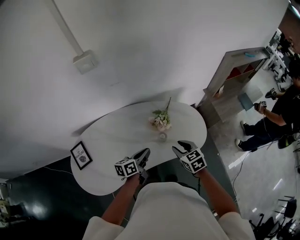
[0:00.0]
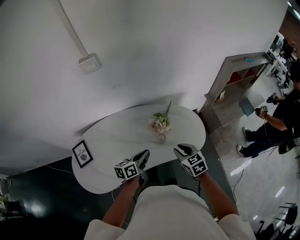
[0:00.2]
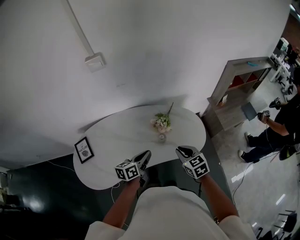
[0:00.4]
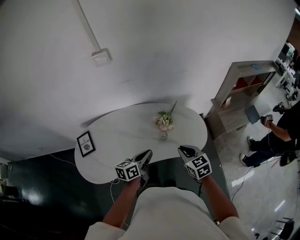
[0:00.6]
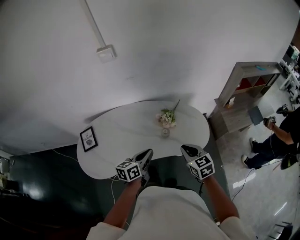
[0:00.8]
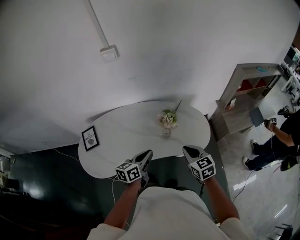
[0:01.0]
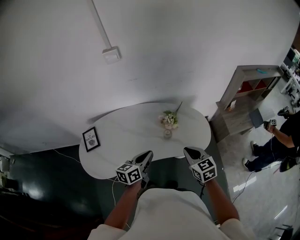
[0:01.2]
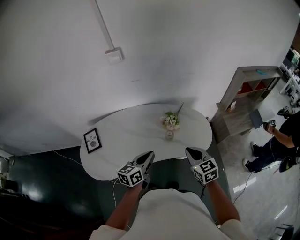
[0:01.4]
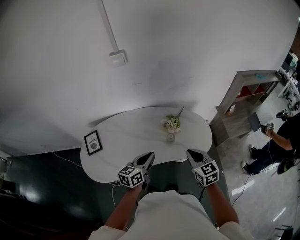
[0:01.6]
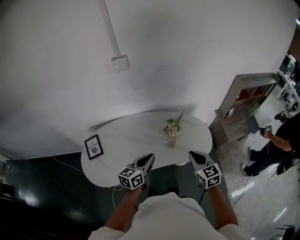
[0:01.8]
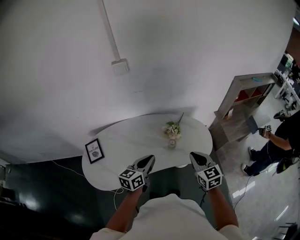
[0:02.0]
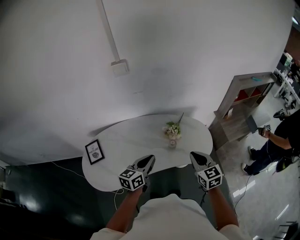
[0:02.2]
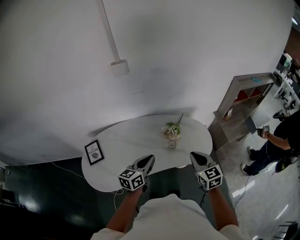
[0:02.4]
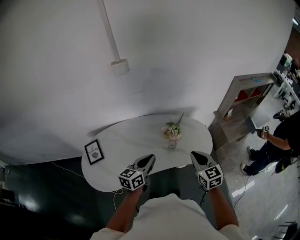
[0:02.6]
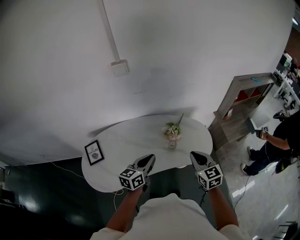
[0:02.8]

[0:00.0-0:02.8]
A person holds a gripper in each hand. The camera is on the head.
0:00.0 to 0:01.4: The right gripper moves upward, approximately 10 cm, and closes.
0:01.4 to 0:02.8: The right gripper heads upward, covering about 5 cm.

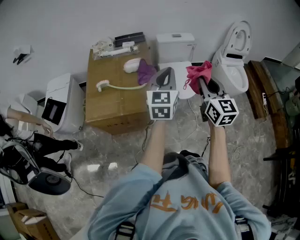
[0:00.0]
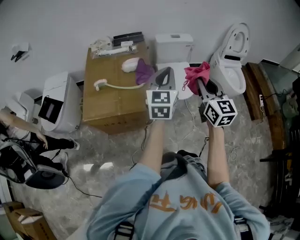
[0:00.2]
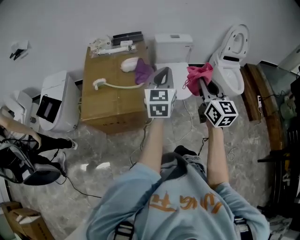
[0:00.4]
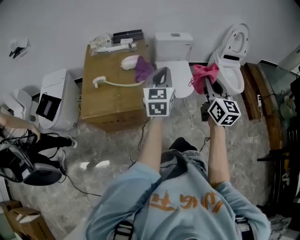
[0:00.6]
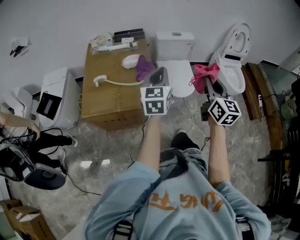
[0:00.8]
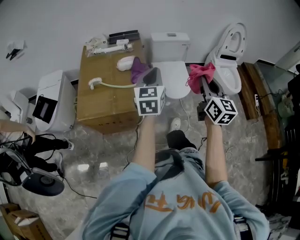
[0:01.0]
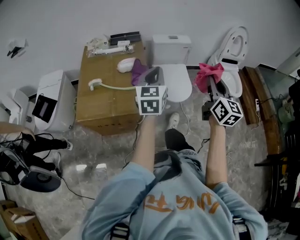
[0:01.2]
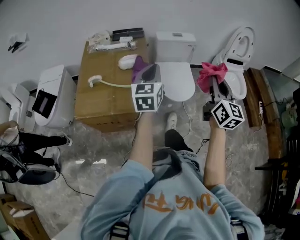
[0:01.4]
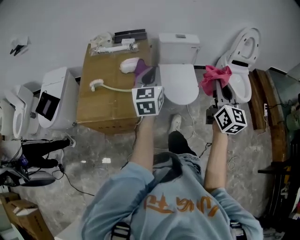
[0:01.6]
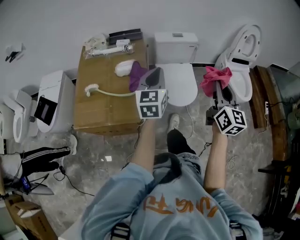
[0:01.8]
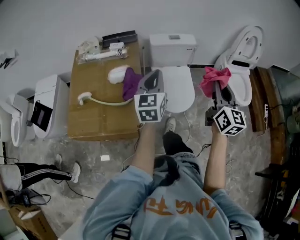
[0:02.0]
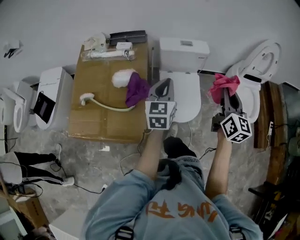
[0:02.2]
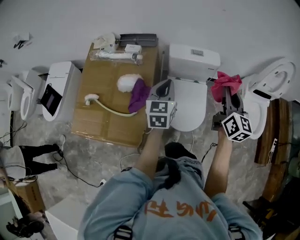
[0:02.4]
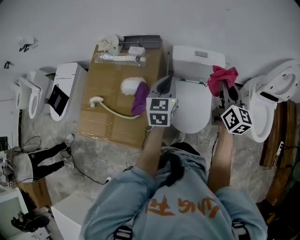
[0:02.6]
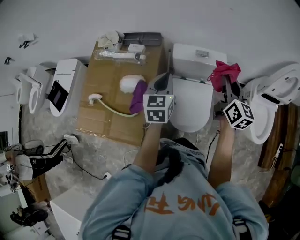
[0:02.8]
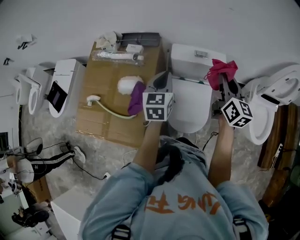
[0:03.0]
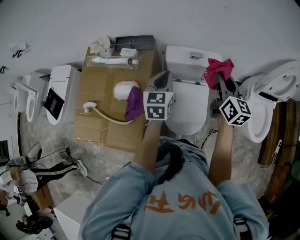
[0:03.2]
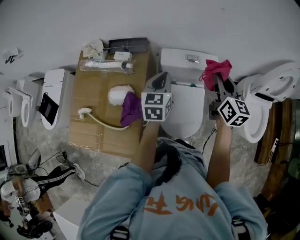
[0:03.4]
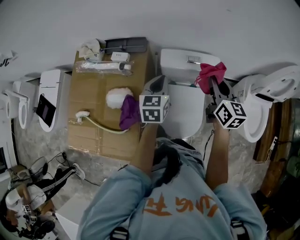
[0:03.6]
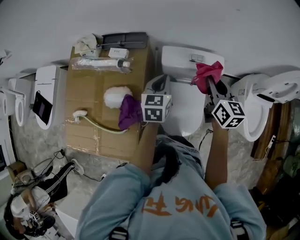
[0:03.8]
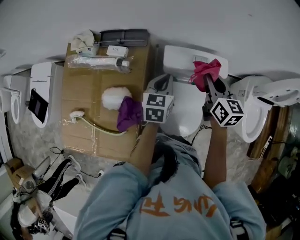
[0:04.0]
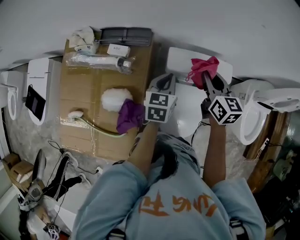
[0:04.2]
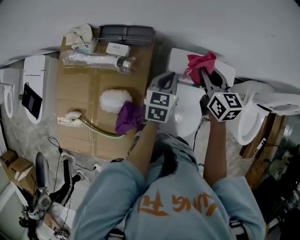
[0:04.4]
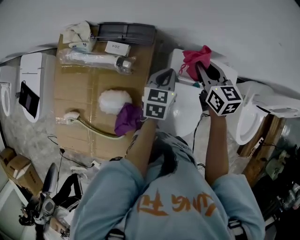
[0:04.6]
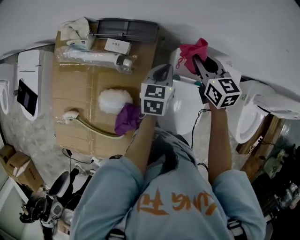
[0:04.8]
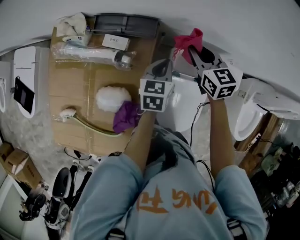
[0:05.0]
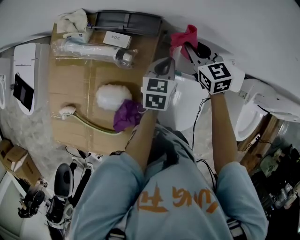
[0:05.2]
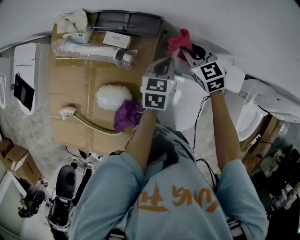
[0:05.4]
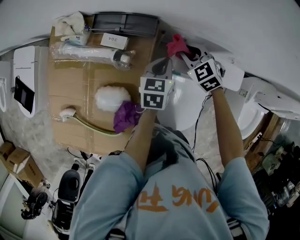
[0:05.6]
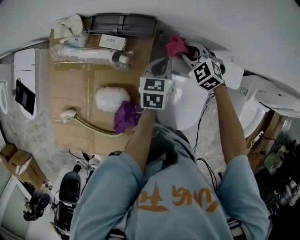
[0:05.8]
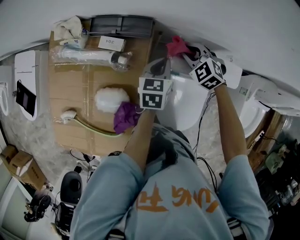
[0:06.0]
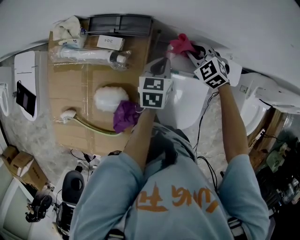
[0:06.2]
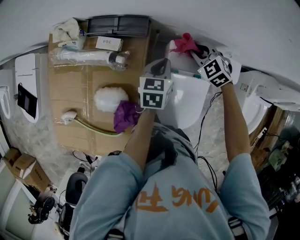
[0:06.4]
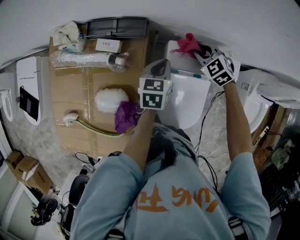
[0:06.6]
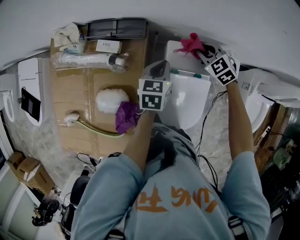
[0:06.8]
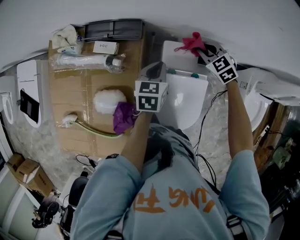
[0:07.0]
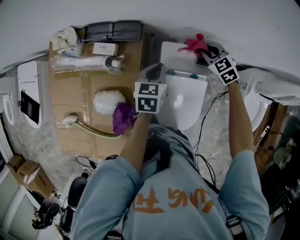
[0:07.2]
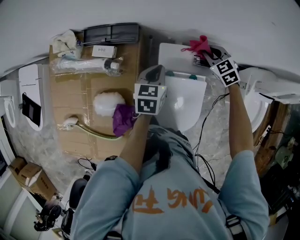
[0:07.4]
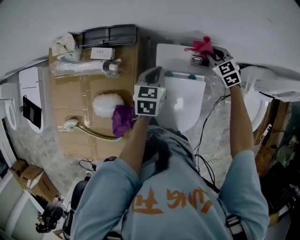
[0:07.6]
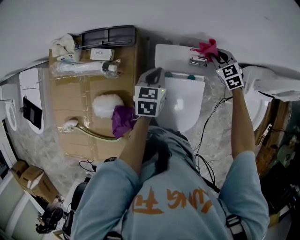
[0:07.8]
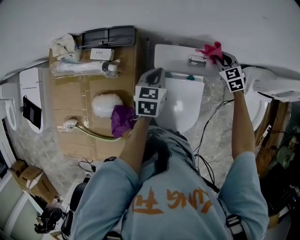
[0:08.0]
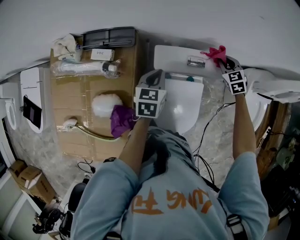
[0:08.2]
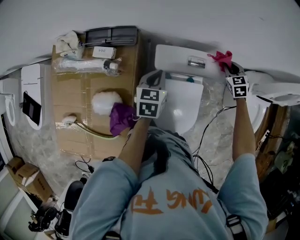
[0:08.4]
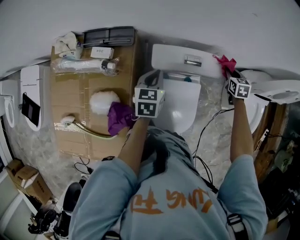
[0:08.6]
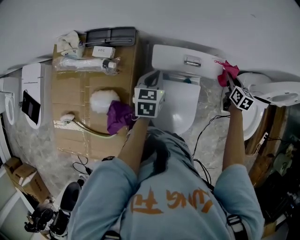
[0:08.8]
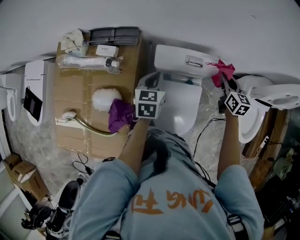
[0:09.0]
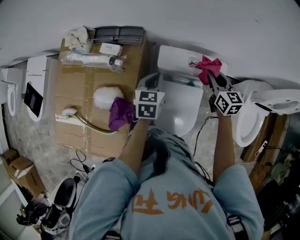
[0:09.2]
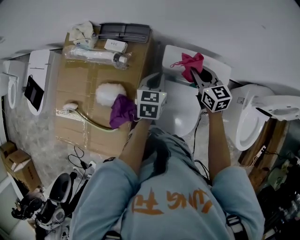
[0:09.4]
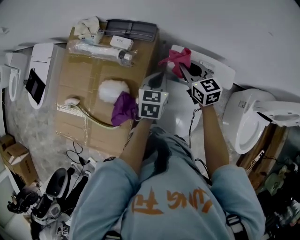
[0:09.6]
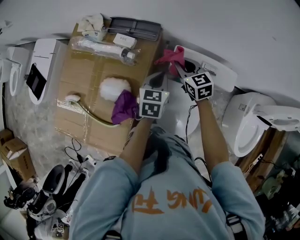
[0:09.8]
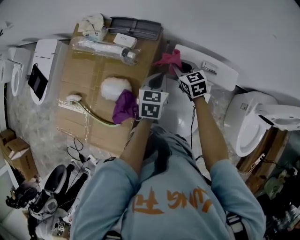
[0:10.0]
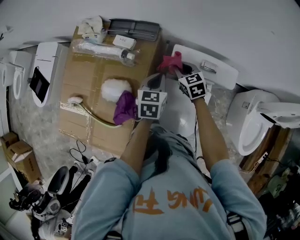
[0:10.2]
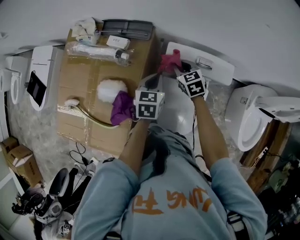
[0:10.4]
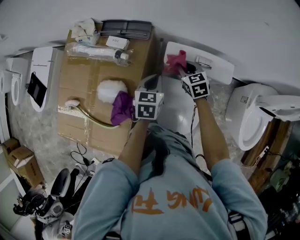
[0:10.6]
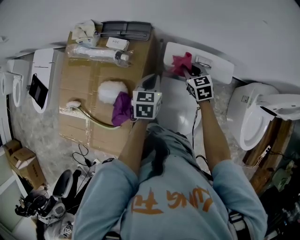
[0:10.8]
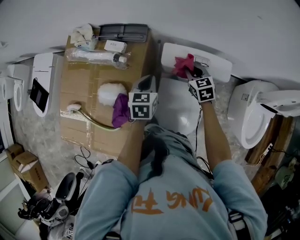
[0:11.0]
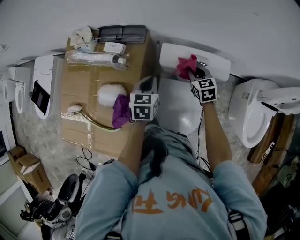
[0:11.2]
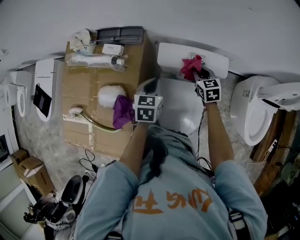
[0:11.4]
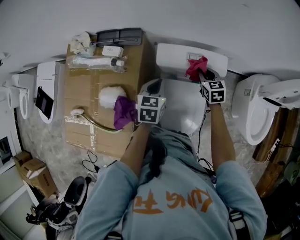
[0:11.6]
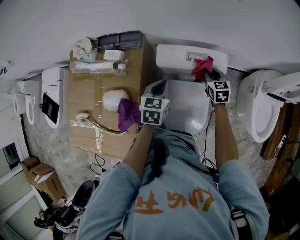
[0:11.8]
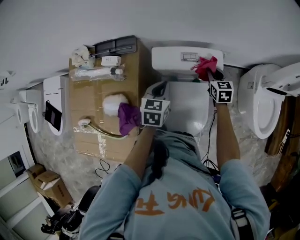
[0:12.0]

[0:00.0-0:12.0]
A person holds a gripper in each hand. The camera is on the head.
0:00.0 to 0:01.6: The left gripper travels forward and downward by roughly 10 cm. The right gripper travels to the right and forward by roughly 10 cm.
0:01.6 to 0:03.0: The grippers both shift forward by roughly 40 cm. The right gripper rotates roughly 20 degrees.
0:03.0 to 0:04.4: The left gripper goes some 25 cm forward and downward. The right gripper shifts approximately 30 cm forward, to the left and downward, and rotates approximately 30 degrees.
0:04.4 to 0:06.0: The right gripper is displaced downward, forward and to the left by about 20 cm, and rotates around the line of its fingers by approximately 50 degrees, counterclockwise from behind; the left gripper travels downward and forward by about 10 cm.
0:06.0 to 0:07.6: The left gripper changes place by about 5 cm, while the right gripper is displaced to the right by approximately 20 cm, and turns by about 20 degrees.
0:07.6 to 0:09.0: The right gripper travels to the right, backward and upward by about 15 cm, and rolls clockwise, seen from behind, by some 40 degrees.
0:09.0 to 0:10.4: The right gripper heads to the left, covering approximately 25 cm, and swivels approximately 40 degrees.
0:10.4 to 0:12.0: The left gripper shifts about 10 cm to the right; the right gripper heads to the right, covering some 25 cm, and turns by some 30 degrees.

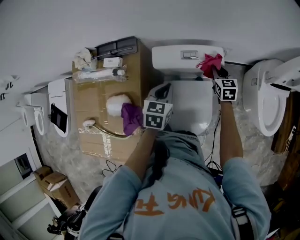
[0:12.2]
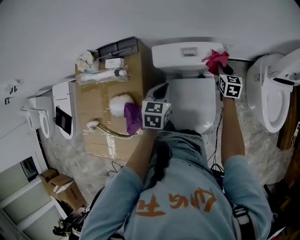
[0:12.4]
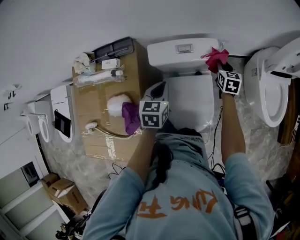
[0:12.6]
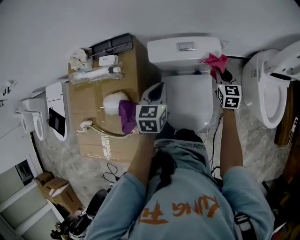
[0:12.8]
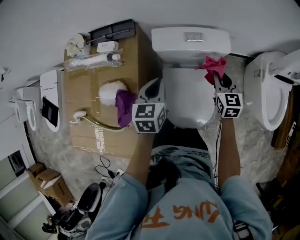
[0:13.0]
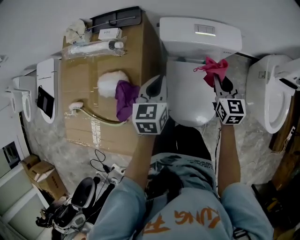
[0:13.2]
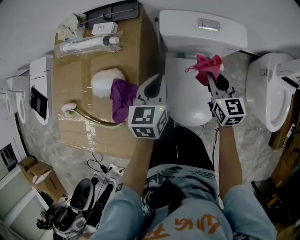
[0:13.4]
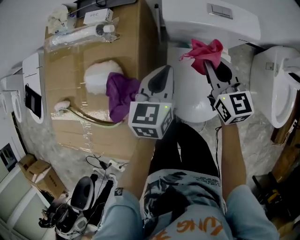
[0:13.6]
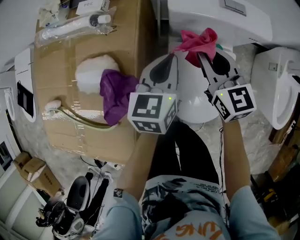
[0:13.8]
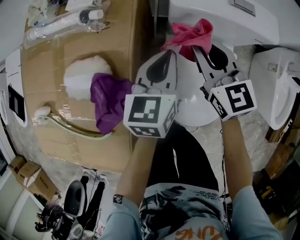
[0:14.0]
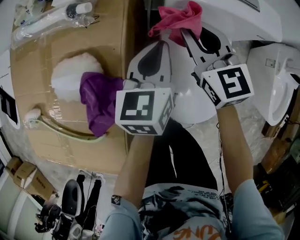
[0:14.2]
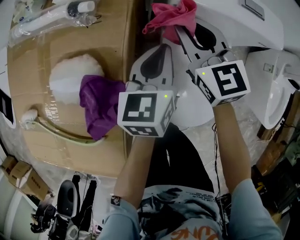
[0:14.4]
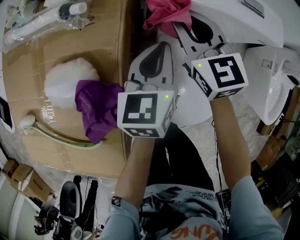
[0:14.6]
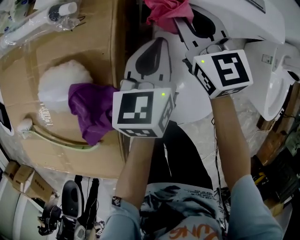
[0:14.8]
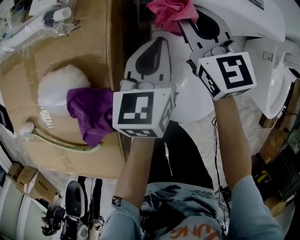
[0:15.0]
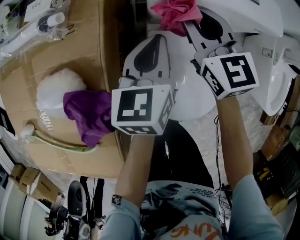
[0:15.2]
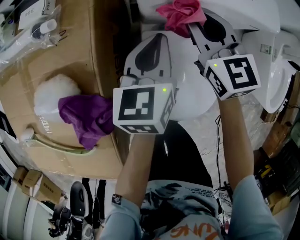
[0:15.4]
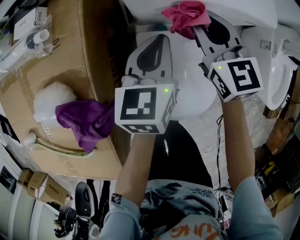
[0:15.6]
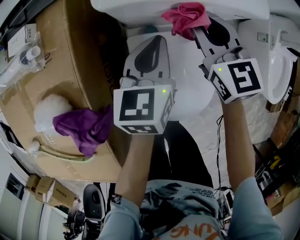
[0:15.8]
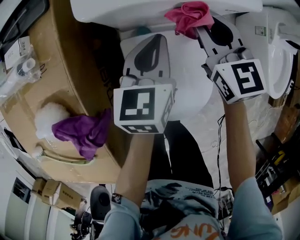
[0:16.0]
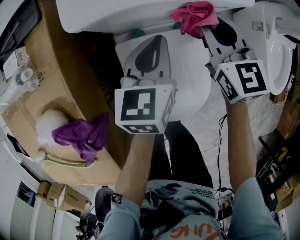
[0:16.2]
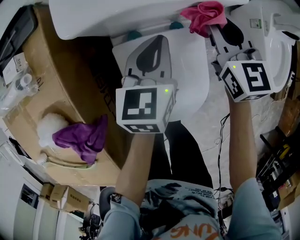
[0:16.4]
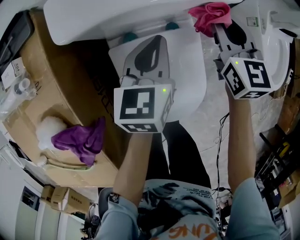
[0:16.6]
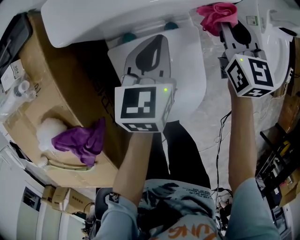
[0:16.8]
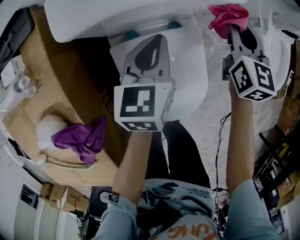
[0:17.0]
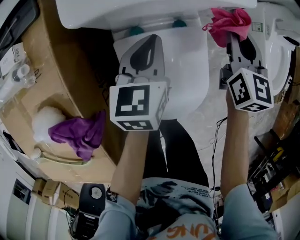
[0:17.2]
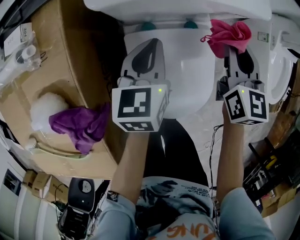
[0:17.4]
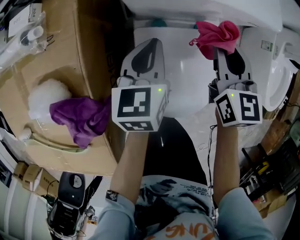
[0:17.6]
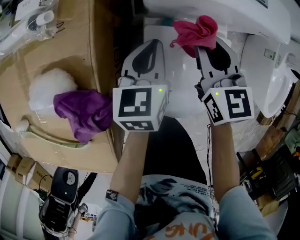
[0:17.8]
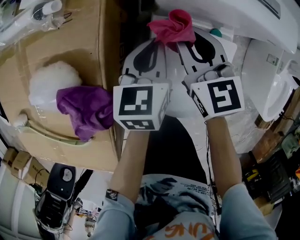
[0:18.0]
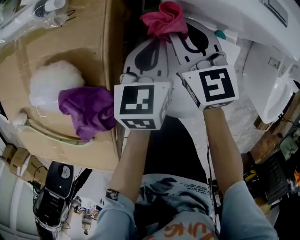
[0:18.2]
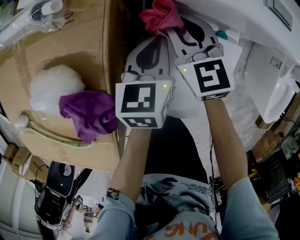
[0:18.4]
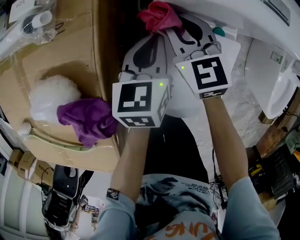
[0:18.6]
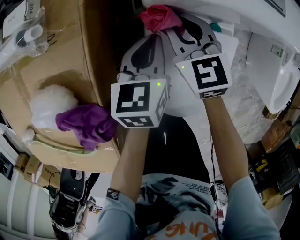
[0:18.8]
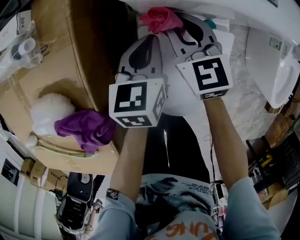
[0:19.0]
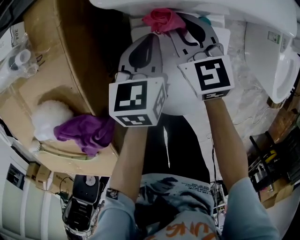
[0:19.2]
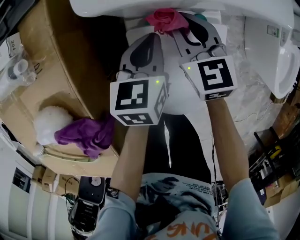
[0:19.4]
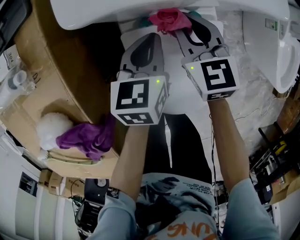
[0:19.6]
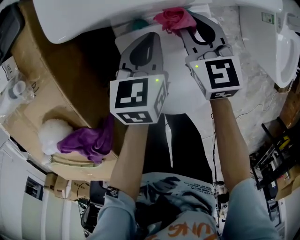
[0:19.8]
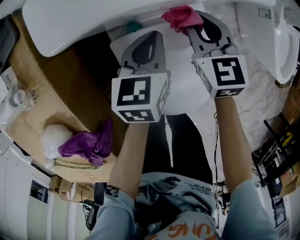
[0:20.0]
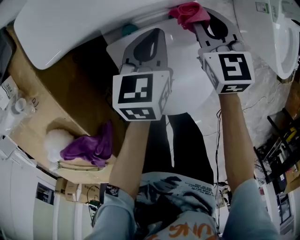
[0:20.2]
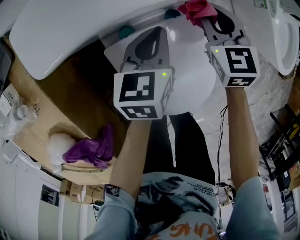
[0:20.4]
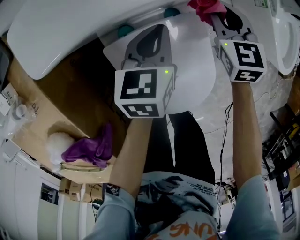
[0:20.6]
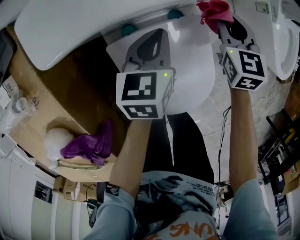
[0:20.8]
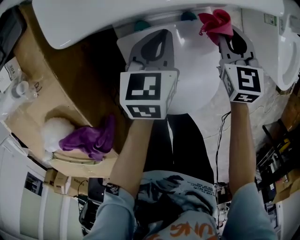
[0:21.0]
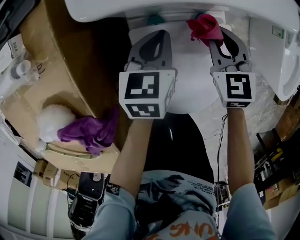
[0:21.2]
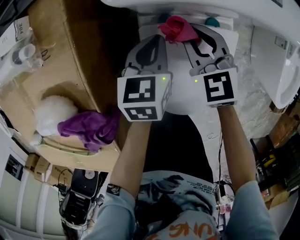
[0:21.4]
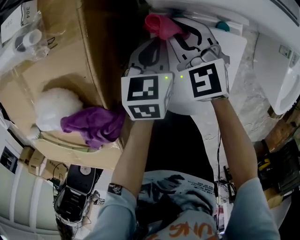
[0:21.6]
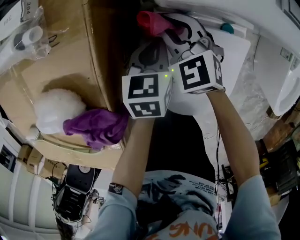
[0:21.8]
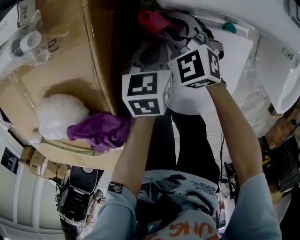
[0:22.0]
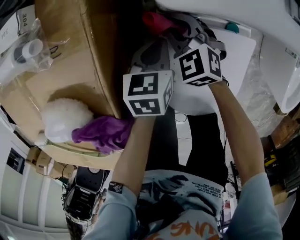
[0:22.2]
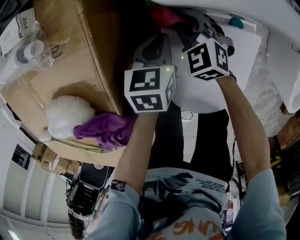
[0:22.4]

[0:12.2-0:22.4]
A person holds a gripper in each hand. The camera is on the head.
0:12.2 to 0:13.6: The left gripper travels downward, to the left and backward by approximately 15 cm. The right gripper moves to the left and backward, approximately 20 cm, and rotates roughly 20 degrees.
0:13.6 to 0:15.2: The right gripper heads forward and downward, covering roughly 15 cm, while the left gripper goes approximately 10 cm downward and forward.
0:15.2 to 0:16.6: The left gripper is displaced to the right by some 15 cm. Meanwhile the right gripper moves to the right, some 25 cm, and changes its angle by approximately 30 degrees.
0:16.6 to 0:18.0: The left gripper shifts by about 20 cm, and swivels about 20 degrees; the right gripper changes place by approximately 30 cm, and changes its angle by about 30 degrees.
0:18.0 to 0:19.4: The left gripper goes some 10 cm to the right, while the right gripper shifts roughly 10 cm to the right and downward.
0:19.4 to 0:21.0: The right gripper travels to the right by approximately 20 cm; the left gripper goes about 5 cm to the right.
0:21.0 to 0:22.4: The left gripper changes place by some 15 cm, while the right gripper changes place by approximately 30 cm, and rotates roughly 50 degrees.
